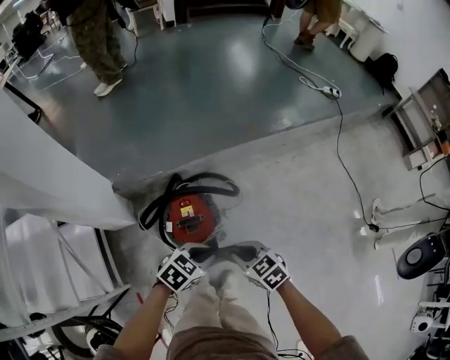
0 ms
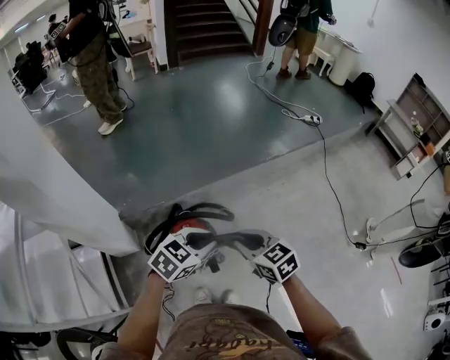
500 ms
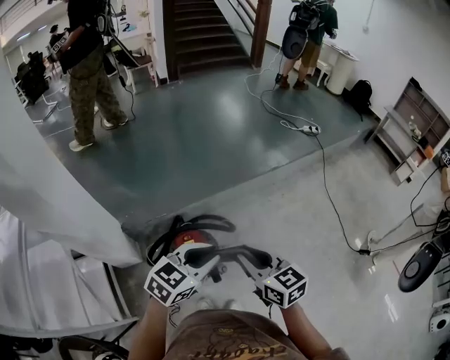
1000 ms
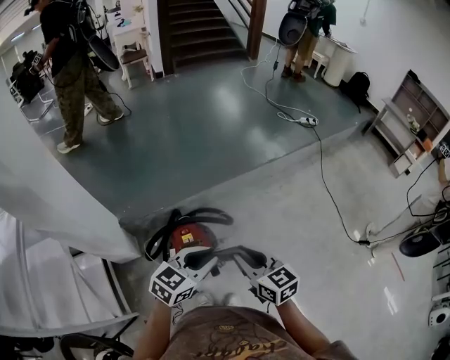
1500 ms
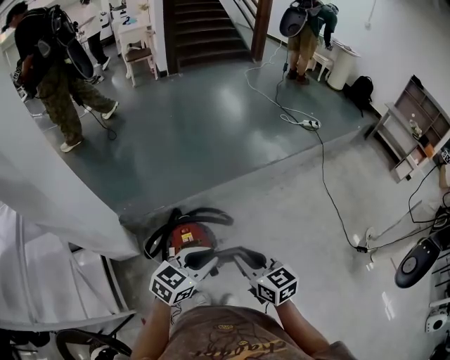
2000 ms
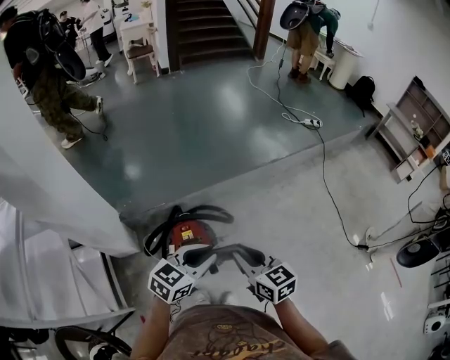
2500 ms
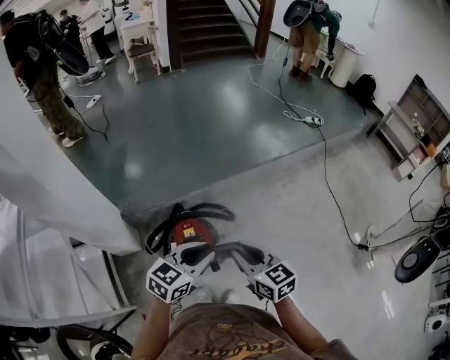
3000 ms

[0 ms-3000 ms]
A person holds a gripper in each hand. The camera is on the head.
0 ms to 1500 ms: The grippers both shift upward by approximately 20 cm. The left gripper turns by some 30 degrees, while the right gripper changes its angle by roughly 40 degrees.
1500 ms to 3000 ms: There are only small adjustments of the grippers.

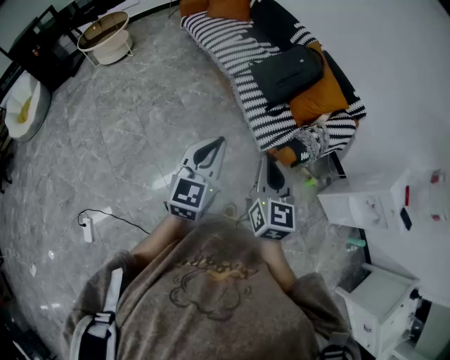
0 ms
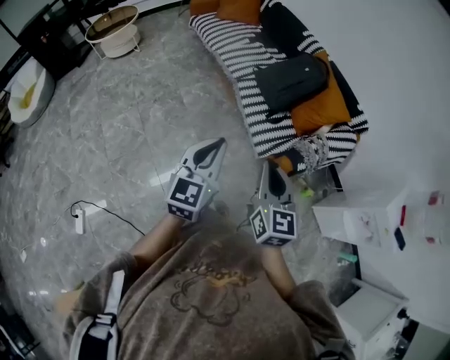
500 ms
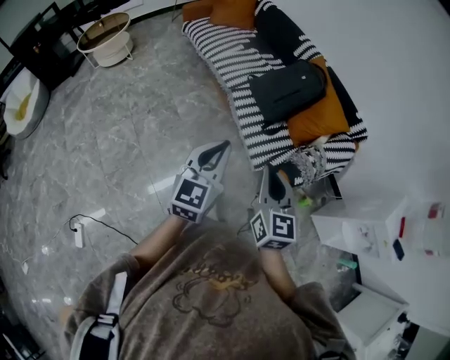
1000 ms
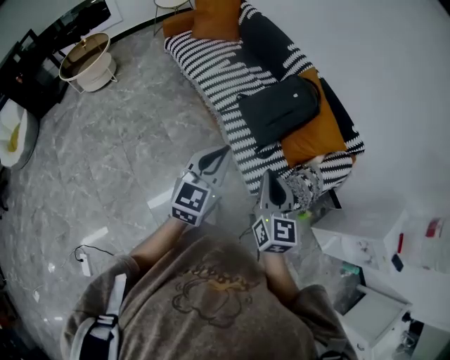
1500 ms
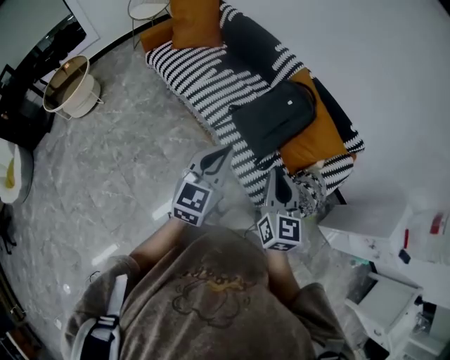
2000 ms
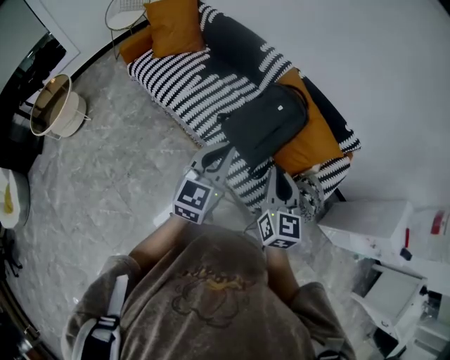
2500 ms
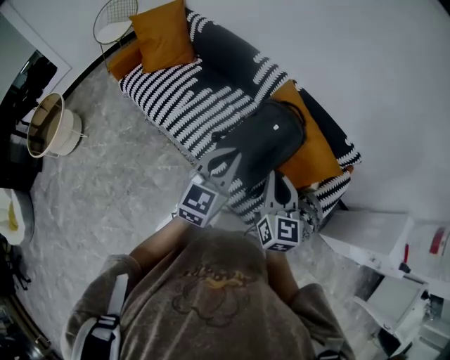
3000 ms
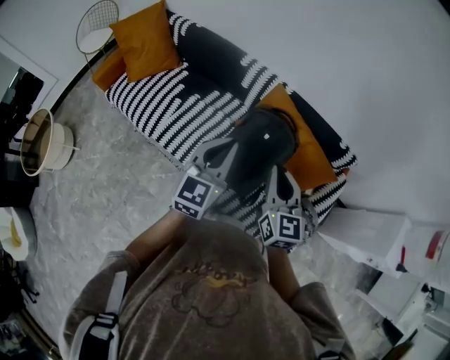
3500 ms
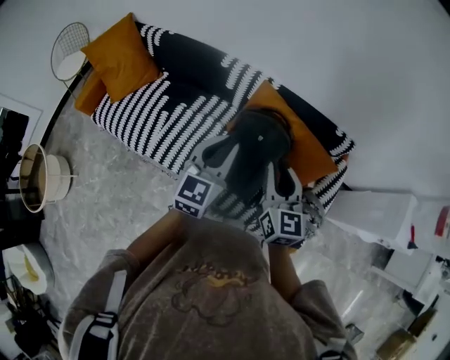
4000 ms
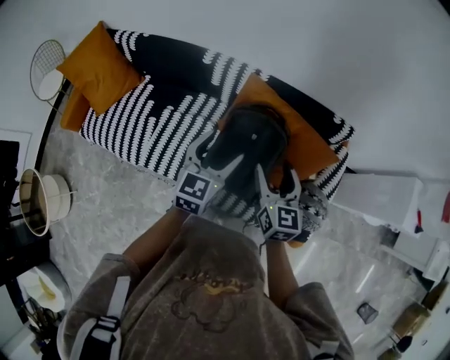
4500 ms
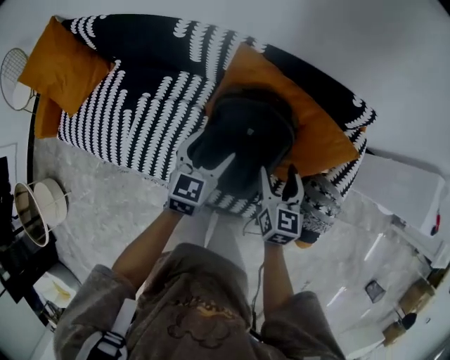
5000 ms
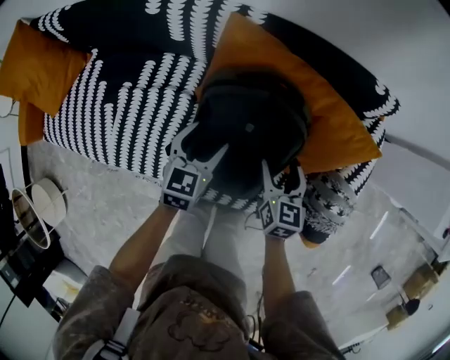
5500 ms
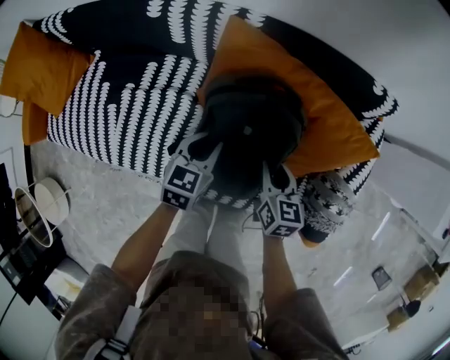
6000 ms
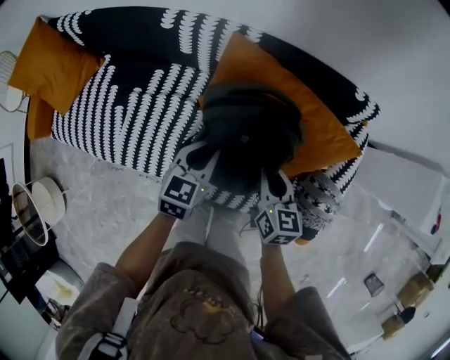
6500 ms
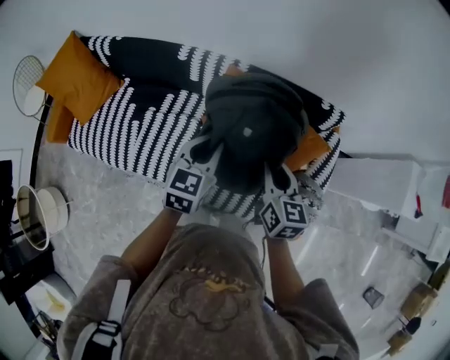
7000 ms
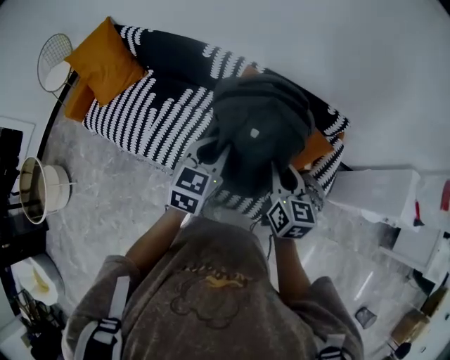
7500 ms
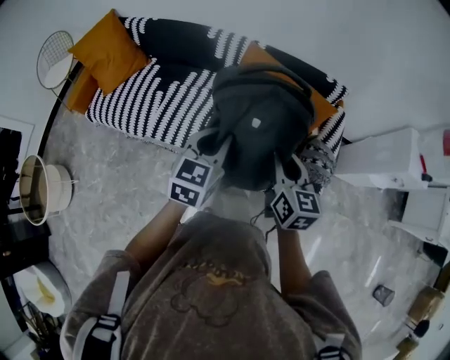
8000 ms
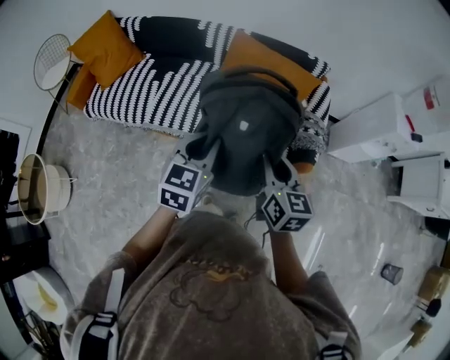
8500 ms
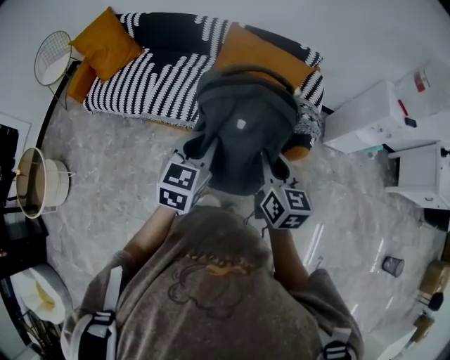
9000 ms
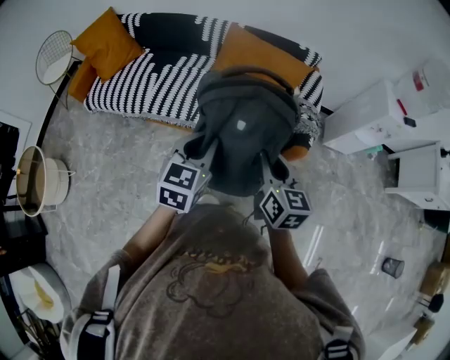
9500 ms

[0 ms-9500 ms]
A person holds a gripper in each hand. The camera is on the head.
0 ms to 2000 ms: The grippers both shift forward by approximately 35 cm.
2000 ms to 4000 ms: The two grippers go about 35 cm forward. The left gripper changes its angle by roughly 20 degrees.
4000 ms to 5500 ms: The two grippers go some 35 cm downward. The right gripper turns by about 30 degrees, and opens up. Meanwhile the left gripper swivels about 30 degrees, and opens its fingers.
5500 ms to 7500 ms: Both grippers travel together upward, roughly 35 cm. The right gripper swivels roughly 20 degrees, and closes up; the left gripper closes up.
7500 ms to 9500 ms: The pair of grippers is taken backward, approximately 40 cm.

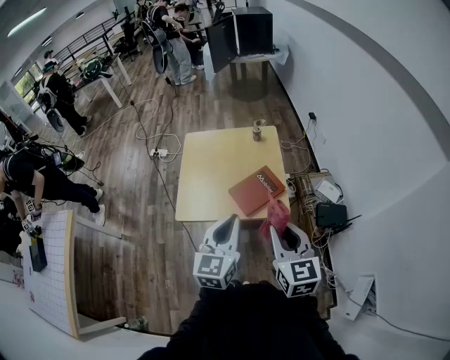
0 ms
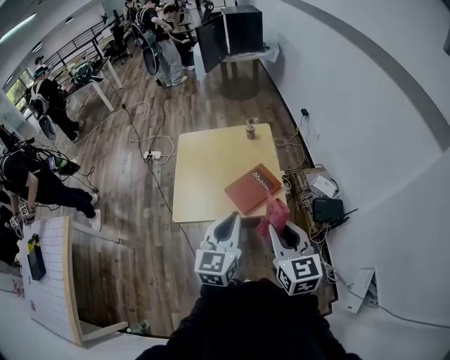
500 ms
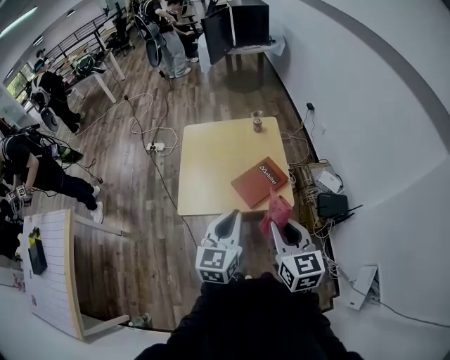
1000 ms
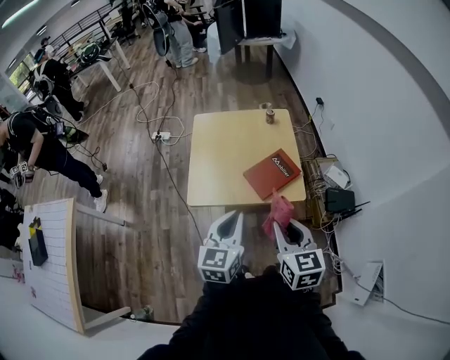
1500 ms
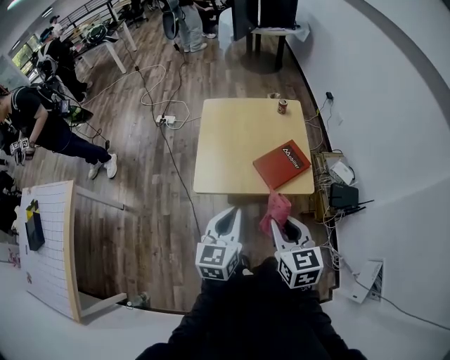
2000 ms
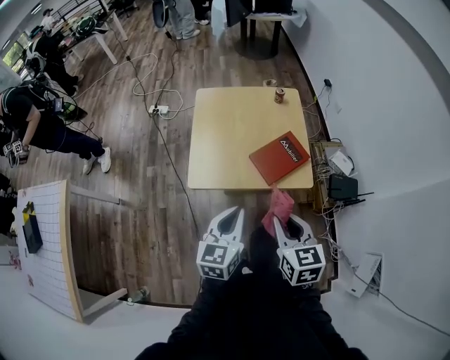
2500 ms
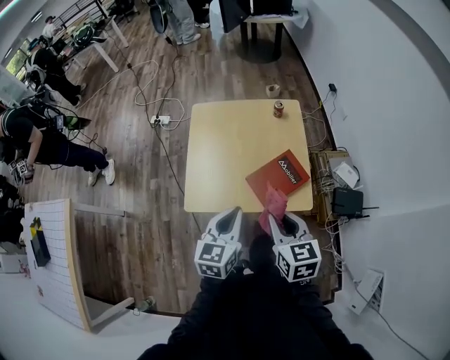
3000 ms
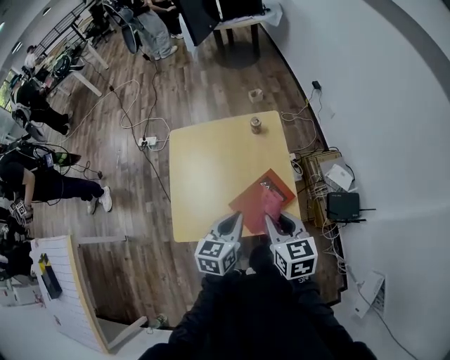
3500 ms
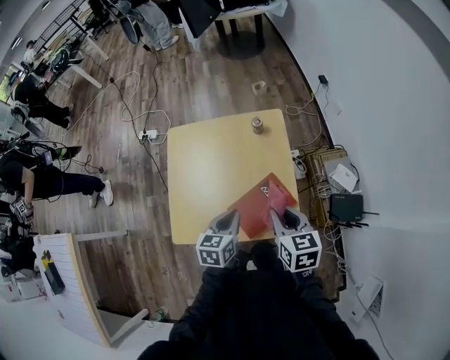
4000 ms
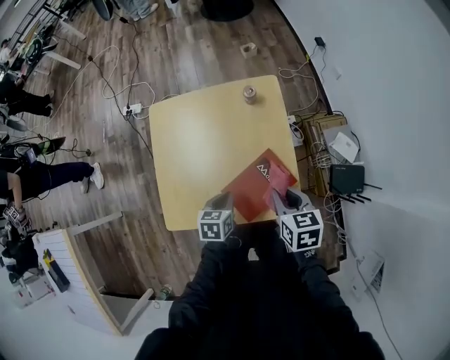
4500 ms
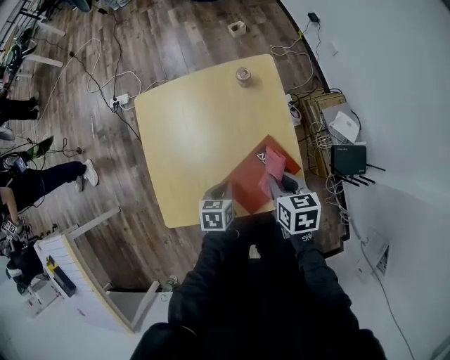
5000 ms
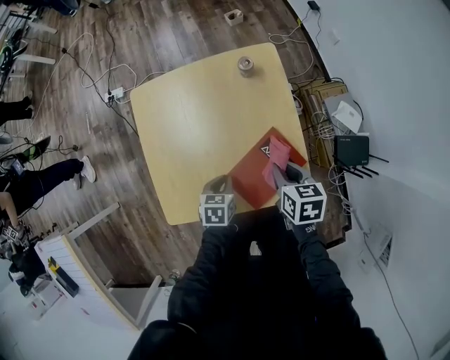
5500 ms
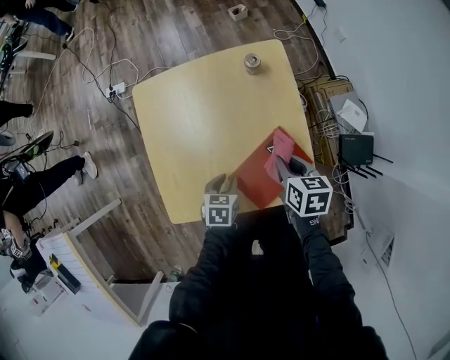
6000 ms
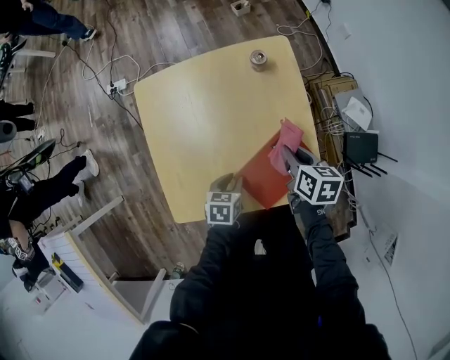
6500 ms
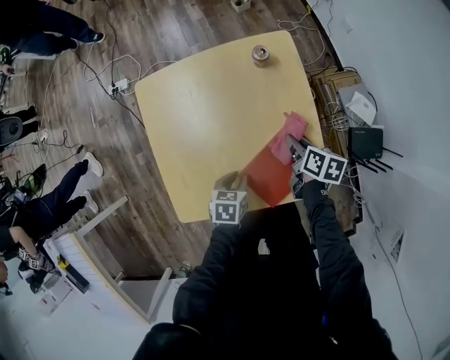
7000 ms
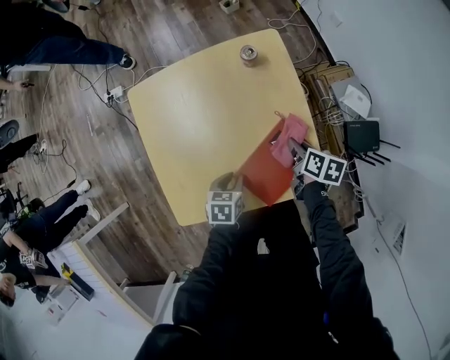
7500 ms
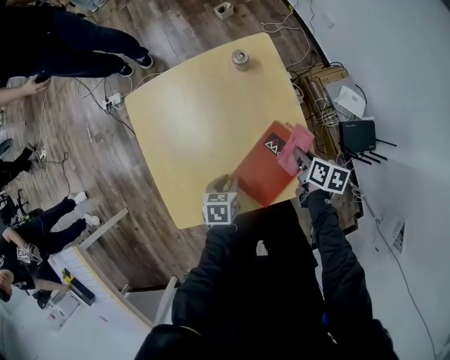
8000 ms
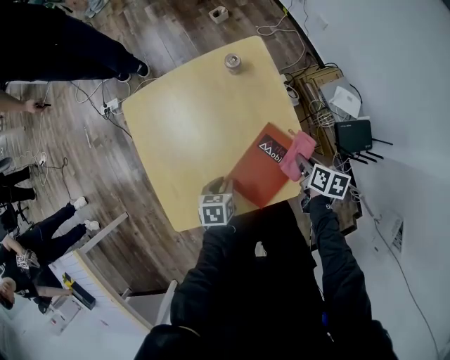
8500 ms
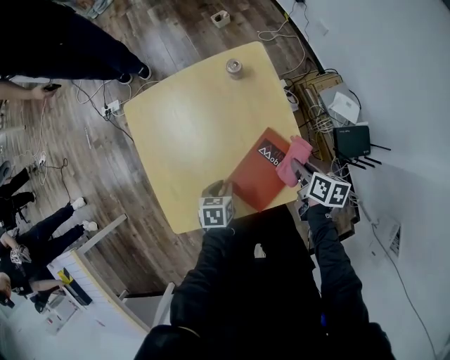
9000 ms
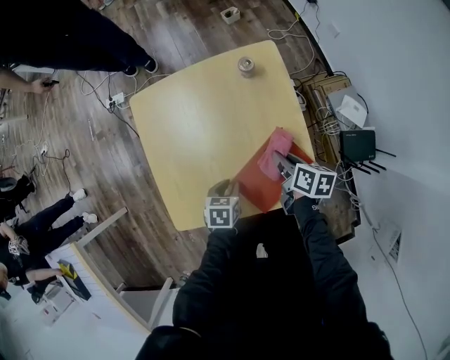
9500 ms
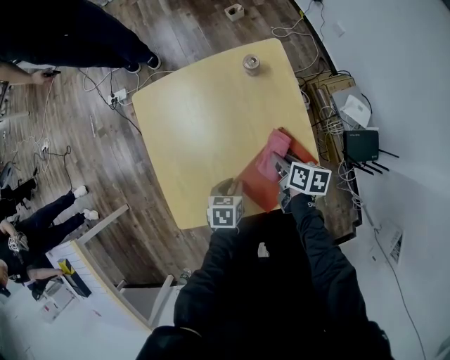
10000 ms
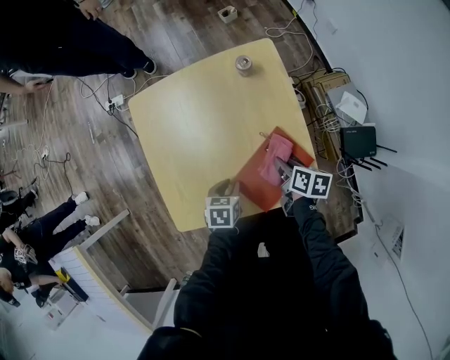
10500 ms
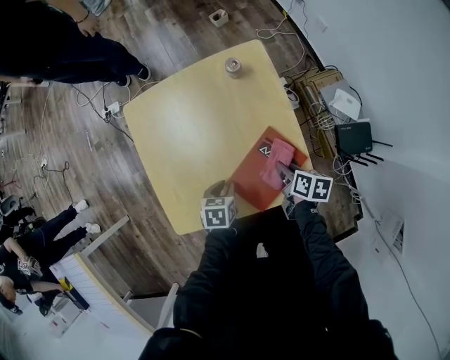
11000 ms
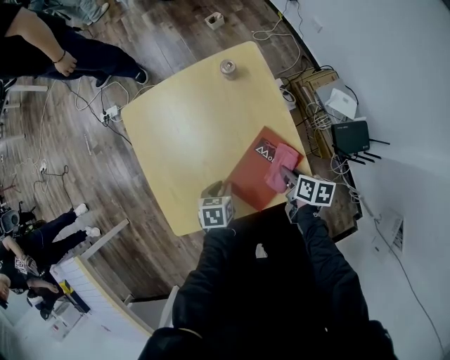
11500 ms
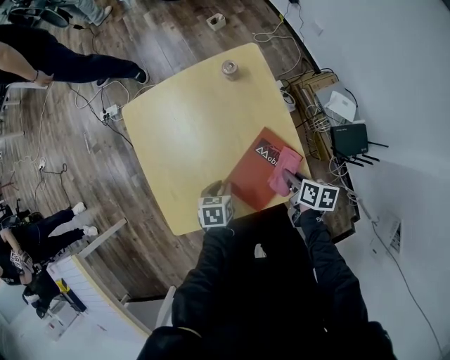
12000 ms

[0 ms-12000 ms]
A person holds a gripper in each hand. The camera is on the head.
0 ms to 2000 ms: The grippers both shift to the left and downward by approximately 15 cm.
2000 ms to 4000 ms: The left gripper moves forward, downward and to the right, roughly 35 cm, and swivels roughly 30 degrees, while the right gripper moves forward and to the right, approximately 35 cm.
4000 ms to 6000 ms: The right gripper is displaced downward and forward by roughly 20 cm, and turns by some 20 degrees. Meanwhile the left gripper shifts about 20 cm downward, and swivels approximately 30 degrees.
6000 ms to 8000 ms: The right gripper travels to the right and downward by roughly 10 cm, and rotates approximately 30 degrees.
8000 ms to 10000 ms: The right gripper travels to the left by roughly 10 cm.
10000 ms to 12000 ms: The right gripper shifts about 10 cm to the right and backward.

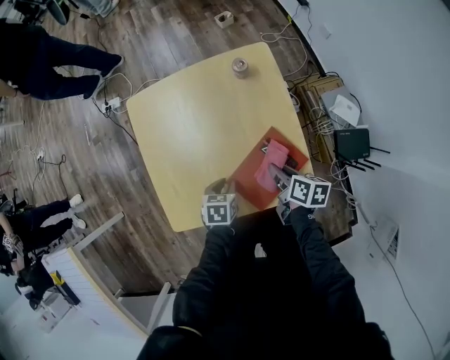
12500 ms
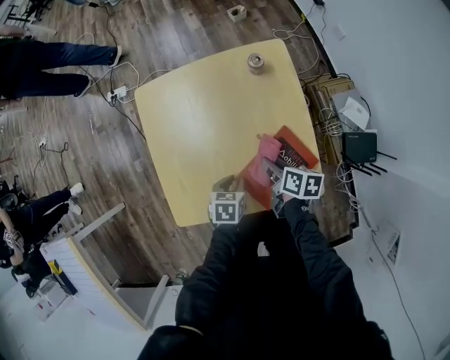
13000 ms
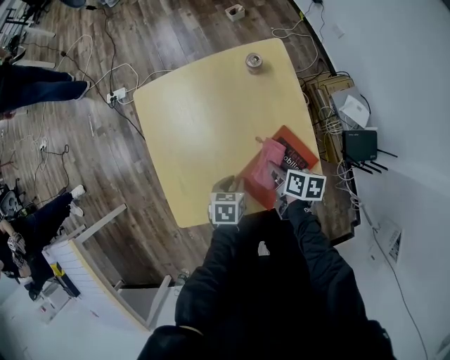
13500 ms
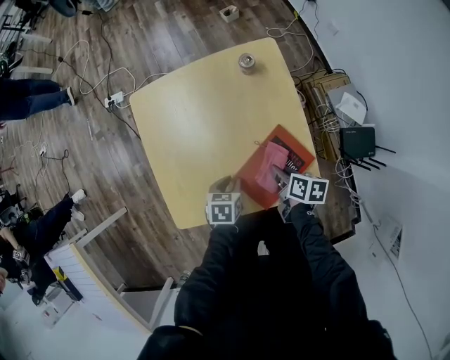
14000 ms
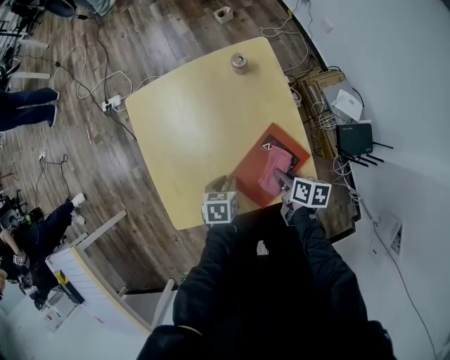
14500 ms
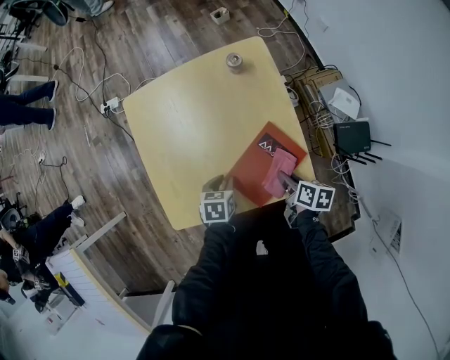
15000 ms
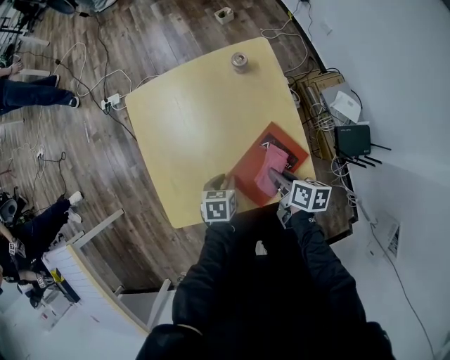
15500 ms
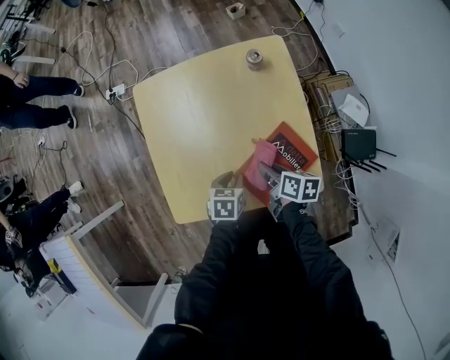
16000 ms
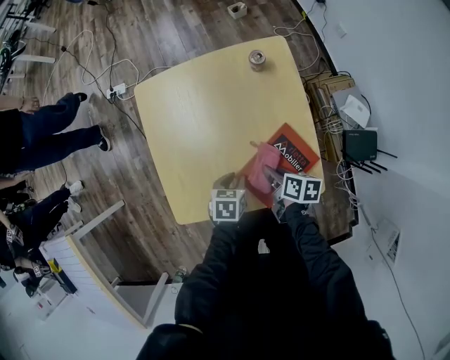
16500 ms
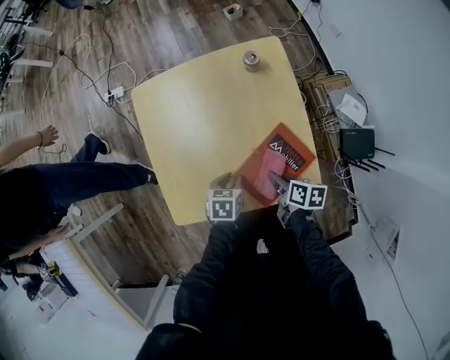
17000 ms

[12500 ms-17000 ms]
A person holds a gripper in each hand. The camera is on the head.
12500 ms to 14500 ms: The right gripper changes place by approximately 5 cm.
